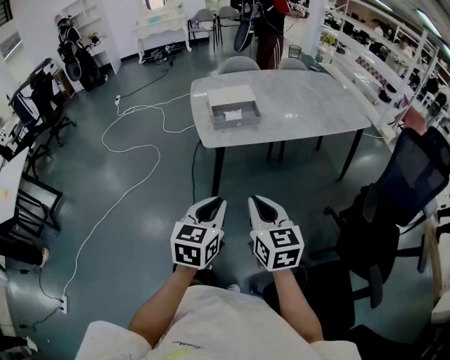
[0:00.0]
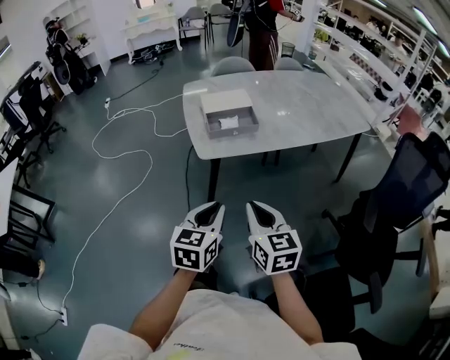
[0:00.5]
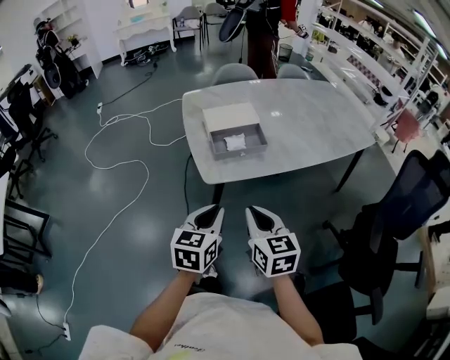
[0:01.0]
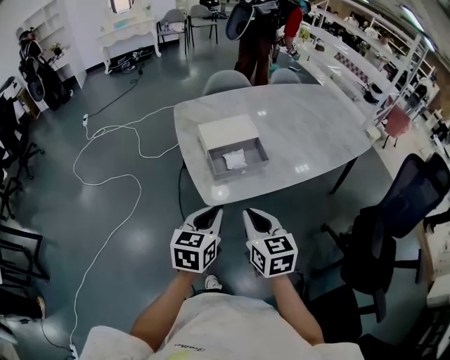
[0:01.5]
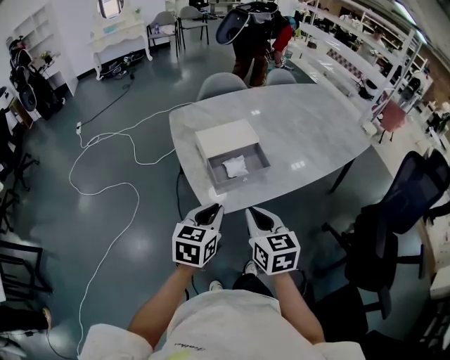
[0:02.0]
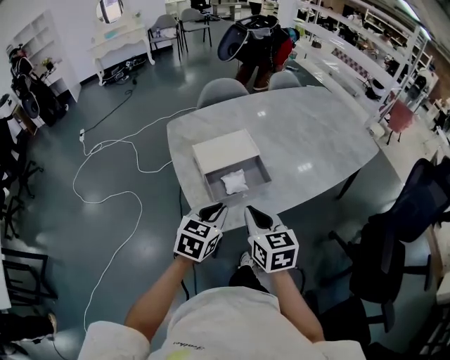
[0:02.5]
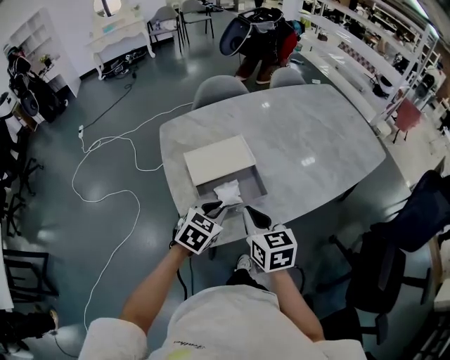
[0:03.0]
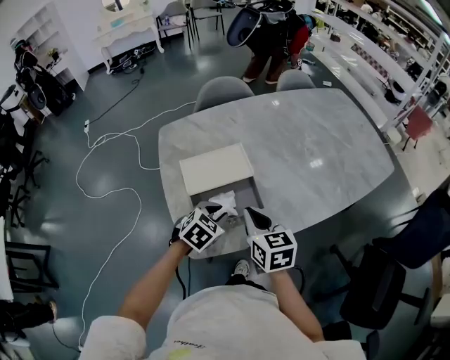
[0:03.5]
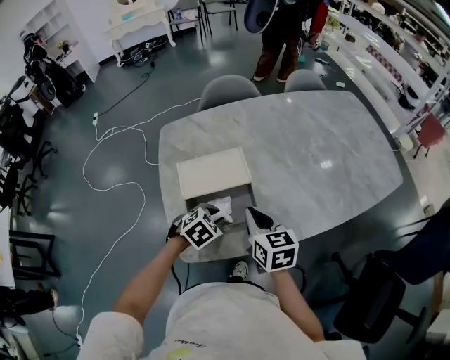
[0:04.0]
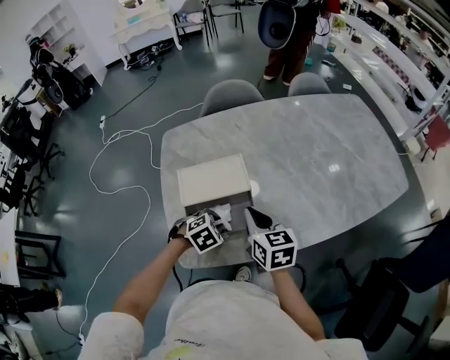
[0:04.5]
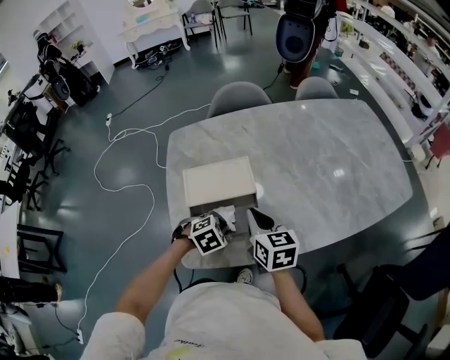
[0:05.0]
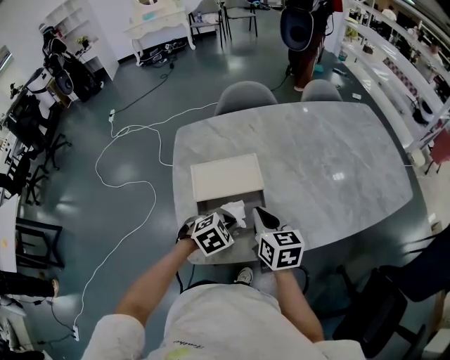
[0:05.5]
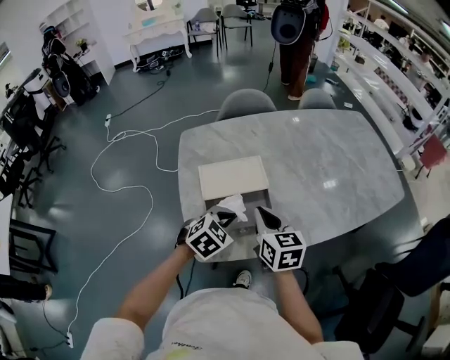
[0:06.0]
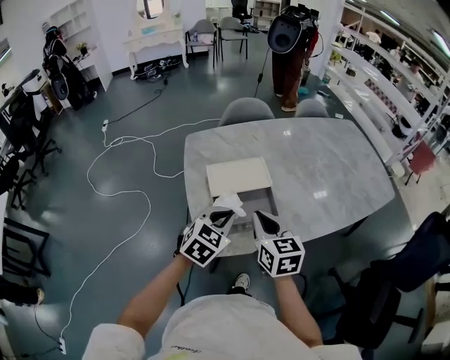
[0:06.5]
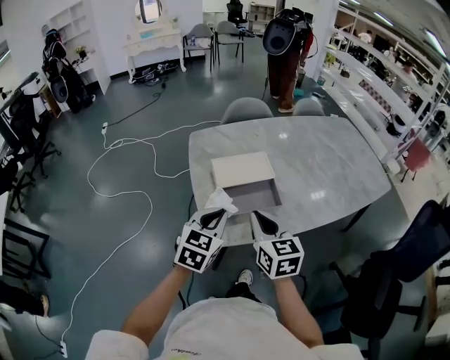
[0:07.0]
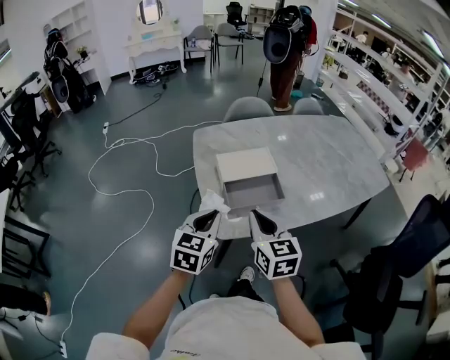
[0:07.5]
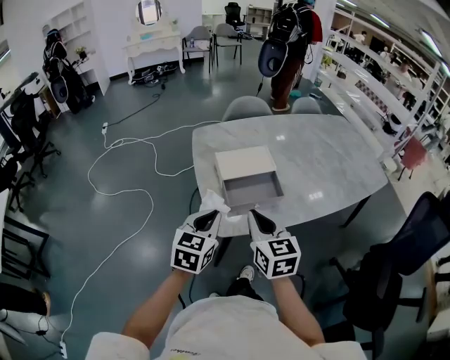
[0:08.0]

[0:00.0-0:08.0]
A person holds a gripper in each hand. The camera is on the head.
0:00.0 to 0:02.0: The two grippers go some 30 cm forward.
0:02.0 to 0:04.0: The left gripper moves forward and downward, about 25 cm, and tips its fingers downward by about 30 degrees. The right gripper travels forward by about 25 cm.
0:04.0 to 0:06.0: The left gripper goes about 10 cm upward.
0:06.0 to 0:08.0: The right gripper shifts roughly 20 cm backward and to the left; the left gripper moves backward, to the left and upward, about 20 cm, and rotates some 40 degrees.

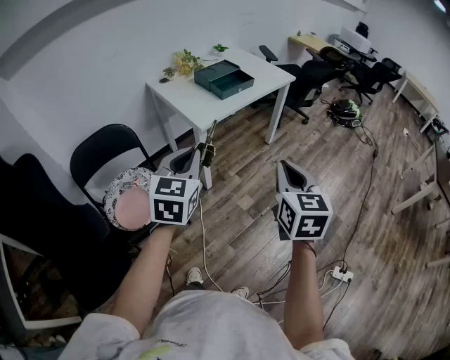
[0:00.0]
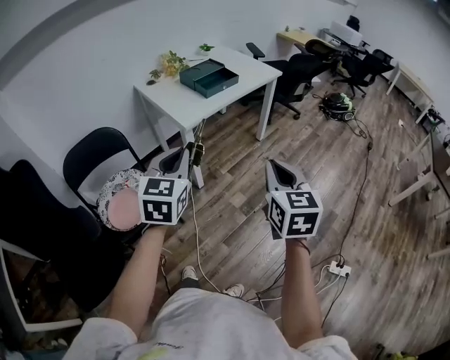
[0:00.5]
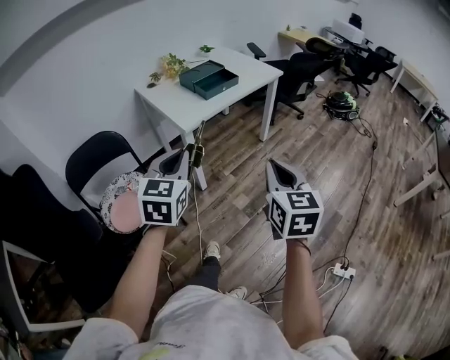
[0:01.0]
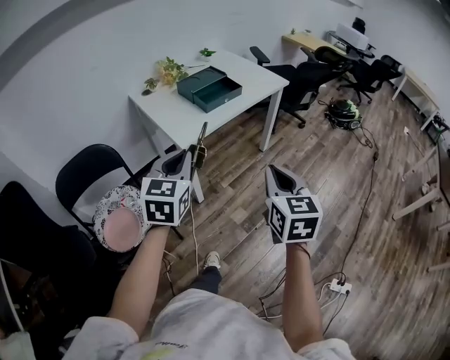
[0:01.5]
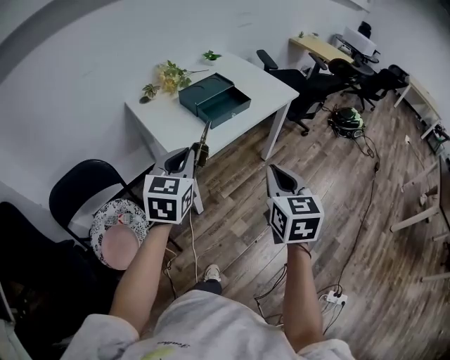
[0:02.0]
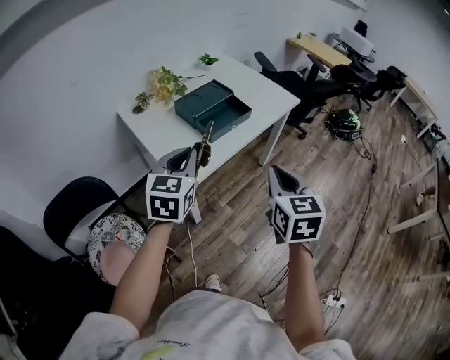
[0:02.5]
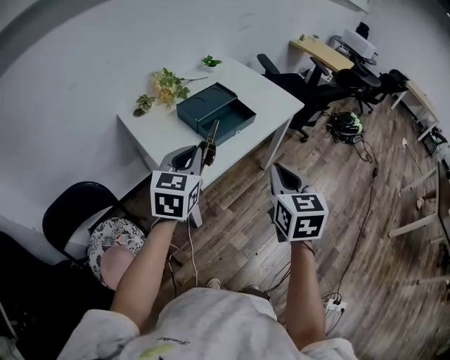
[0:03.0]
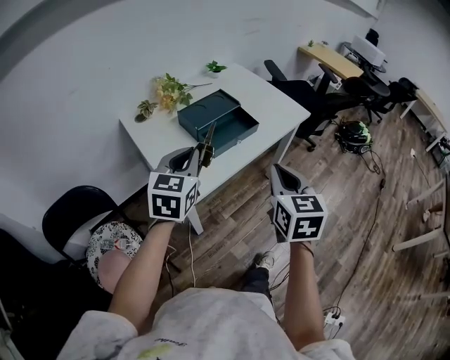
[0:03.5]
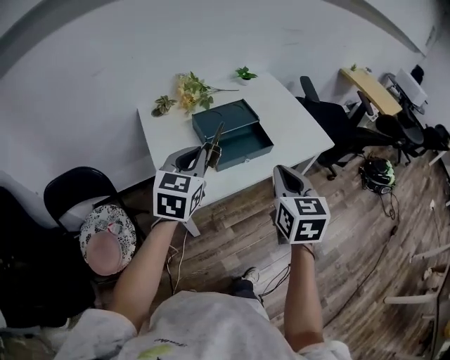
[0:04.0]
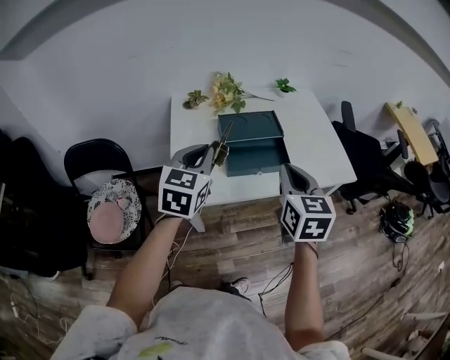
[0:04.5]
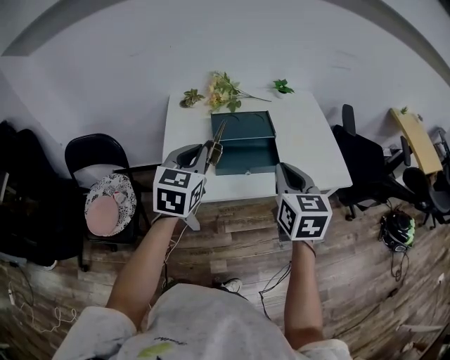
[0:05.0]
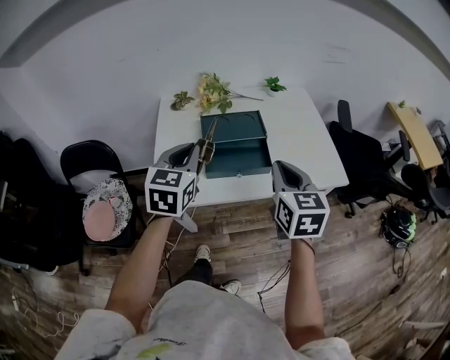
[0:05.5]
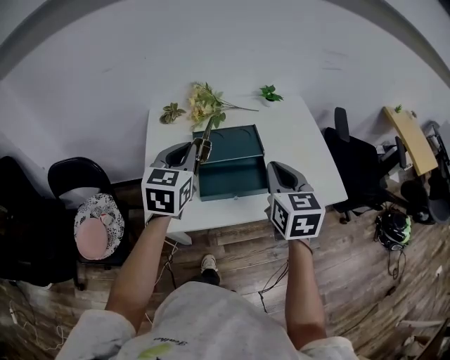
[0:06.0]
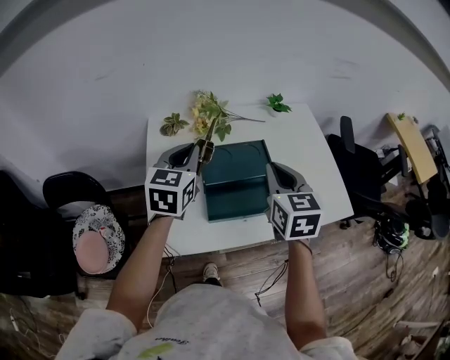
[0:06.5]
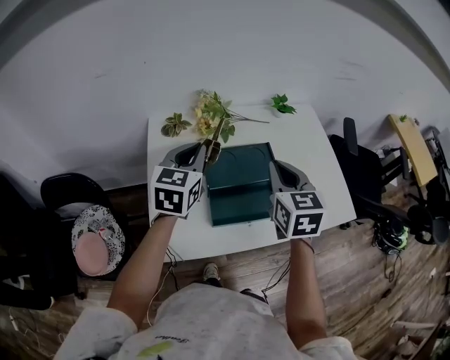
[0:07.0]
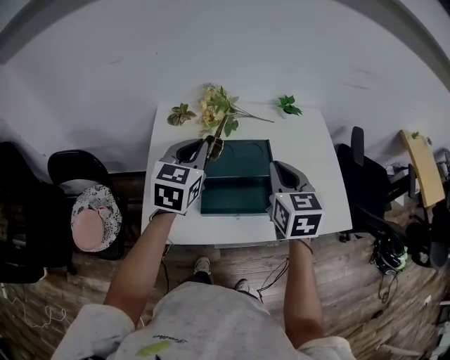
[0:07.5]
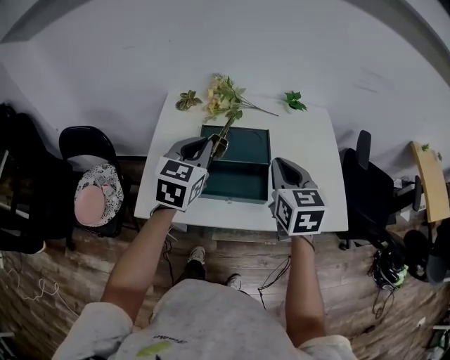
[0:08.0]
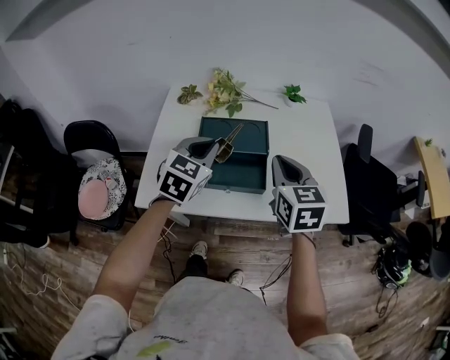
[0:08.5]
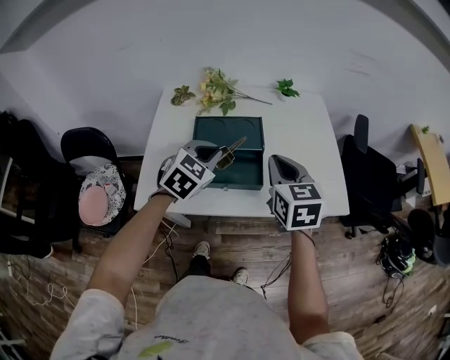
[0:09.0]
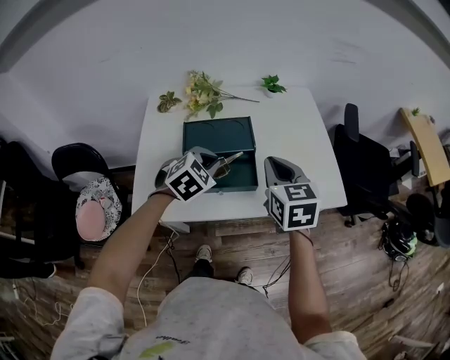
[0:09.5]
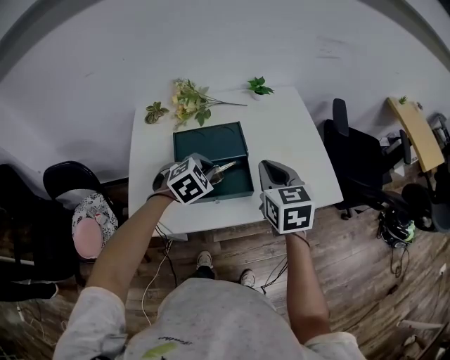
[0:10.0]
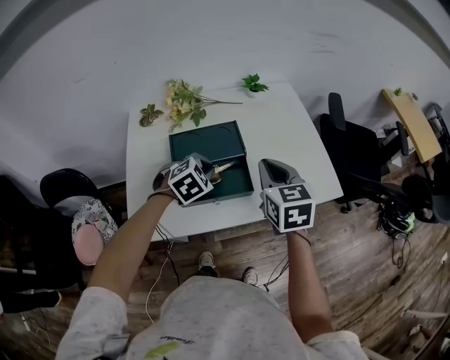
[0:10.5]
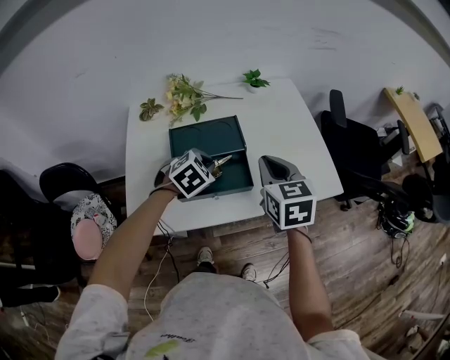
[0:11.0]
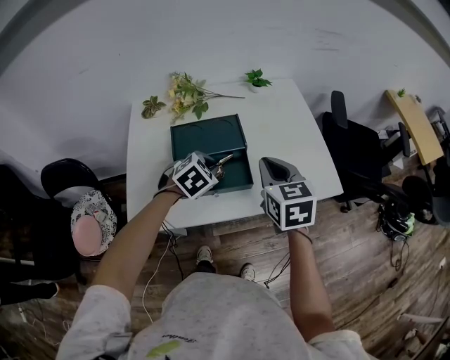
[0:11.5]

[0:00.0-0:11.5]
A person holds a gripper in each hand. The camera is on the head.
0:00.0 to 0:02.0: The two grippers go about 25 cm forward.
0:02.0 to 0:04.0: The two grippers go about 25 cm forward.
0:04.0 to 0:06.0: The two grippers go some 15 cm forward.
0:06.0 to 0:07.5: The grippers both shift forward by roughly 10 cm.
0:07.5 to 0:09.5: The right gripper travels to the right and backward by roughly 10 cm. The left gripper heads to the right, downward and backward, covering roughly 15 cm, and turns by roughly 50 degrees.
0:09.5 to 0:11.5: The left gripper goes approximately 5 cm downward.

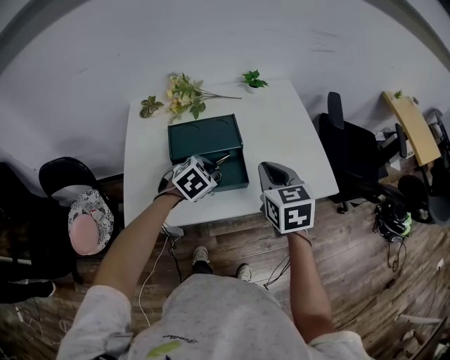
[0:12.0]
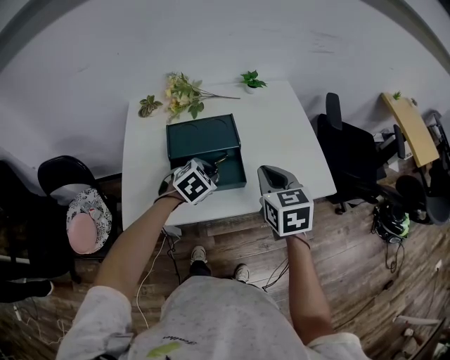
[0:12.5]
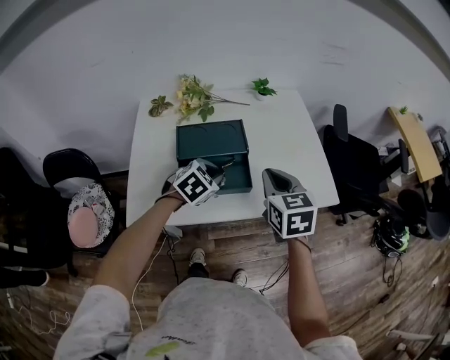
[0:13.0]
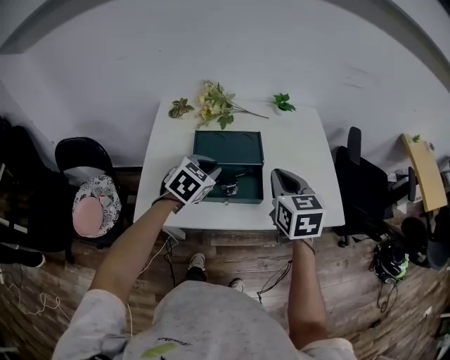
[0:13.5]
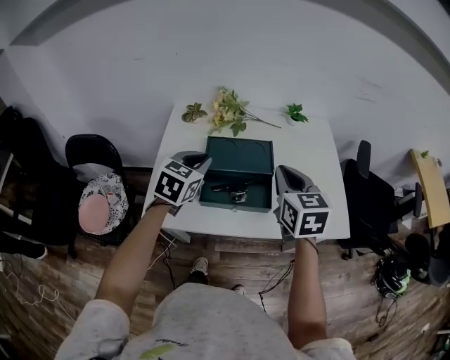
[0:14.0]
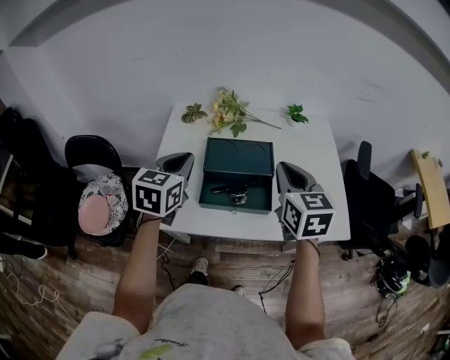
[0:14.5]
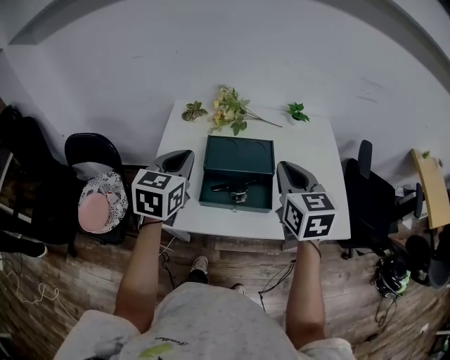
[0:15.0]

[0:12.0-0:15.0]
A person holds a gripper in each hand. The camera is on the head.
0:12.0 to 0:13.5: The left gripper moves upward and to the left, roughly 10 cm, and changes its angle by roughly 20 degrees.
0:13.5 to 0:15.0: The left gripper travels upward and to the left by some 15 cm, and turns by roughly 30 degrees. The right gripper moves approximately 5 cm.

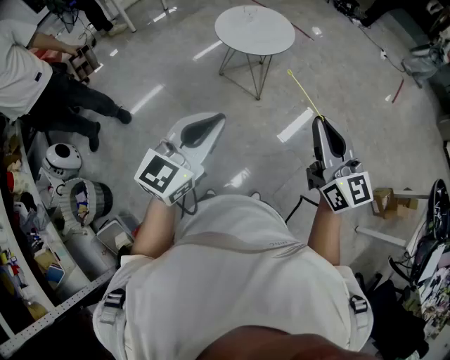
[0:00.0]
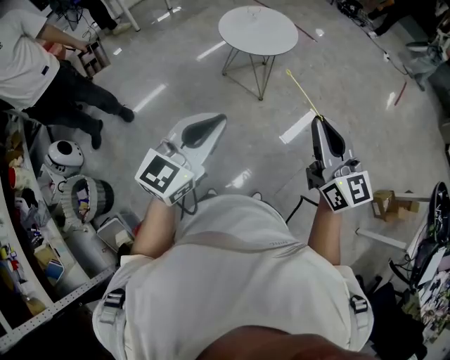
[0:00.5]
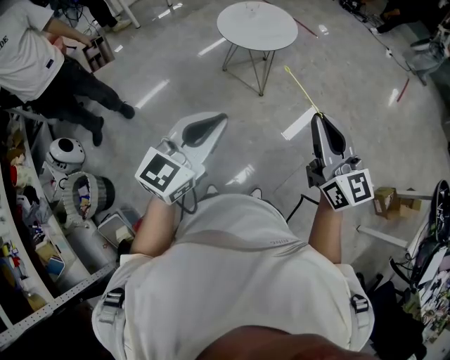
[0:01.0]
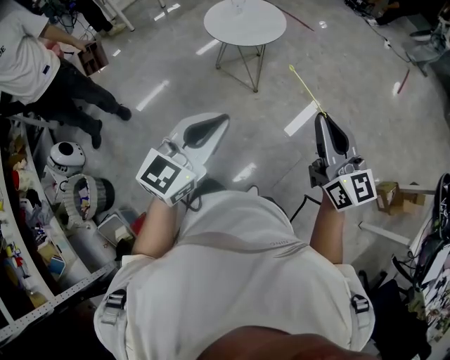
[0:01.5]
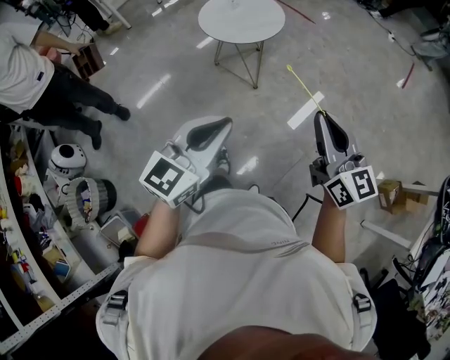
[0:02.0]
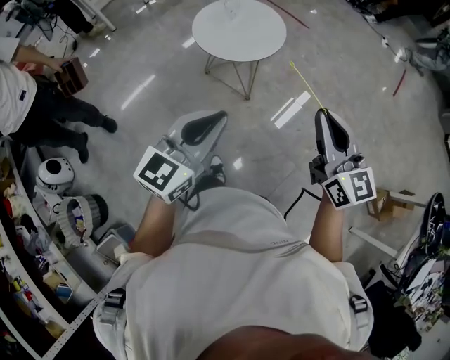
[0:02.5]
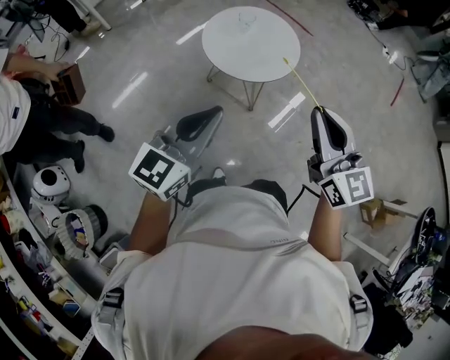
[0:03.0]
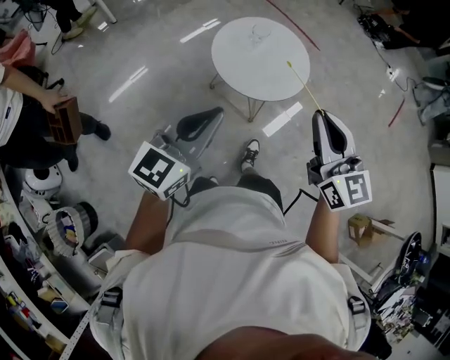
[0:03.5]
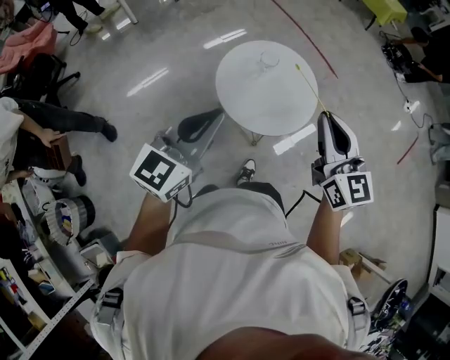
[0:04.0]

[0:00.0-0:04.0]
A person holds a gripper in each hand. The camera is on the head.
0:00.0 to 0:02.0: The left gripper is displaced to the right and forward by approximately 15 cm. Meanwhile the right gripper shifts approximately 15 cm to the right, forward and downward.
0:02.0 to 0:04.0: The two grippers travel together, forward and to the left, approximately 60 cm.
